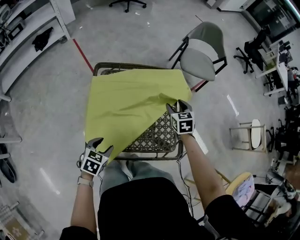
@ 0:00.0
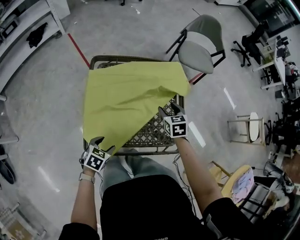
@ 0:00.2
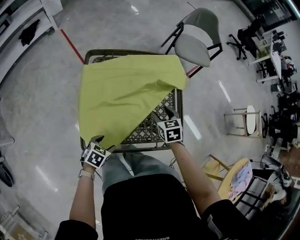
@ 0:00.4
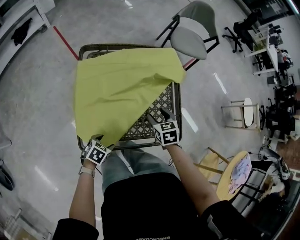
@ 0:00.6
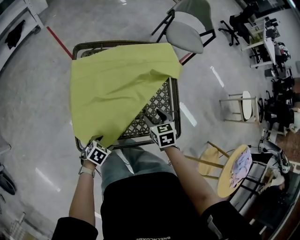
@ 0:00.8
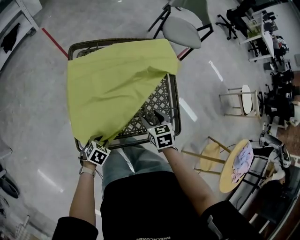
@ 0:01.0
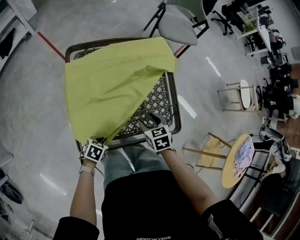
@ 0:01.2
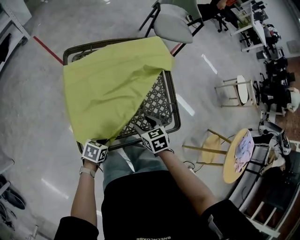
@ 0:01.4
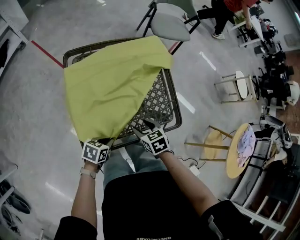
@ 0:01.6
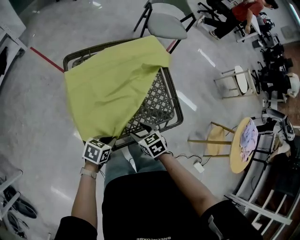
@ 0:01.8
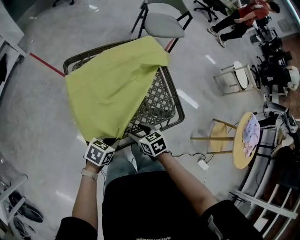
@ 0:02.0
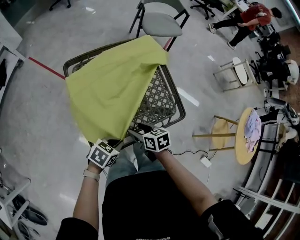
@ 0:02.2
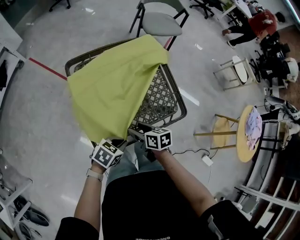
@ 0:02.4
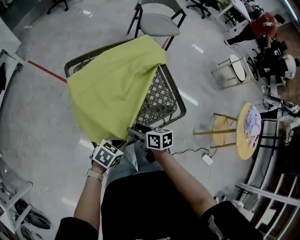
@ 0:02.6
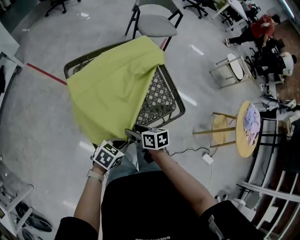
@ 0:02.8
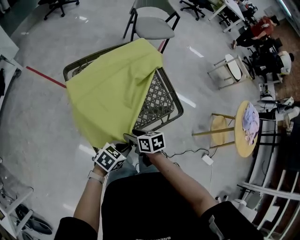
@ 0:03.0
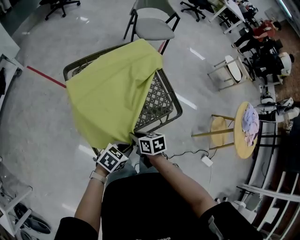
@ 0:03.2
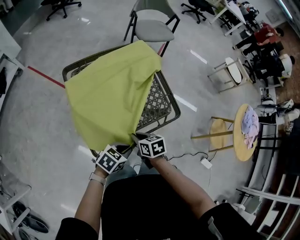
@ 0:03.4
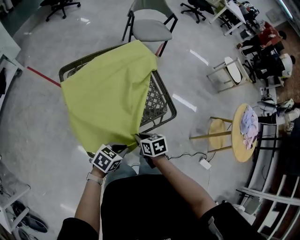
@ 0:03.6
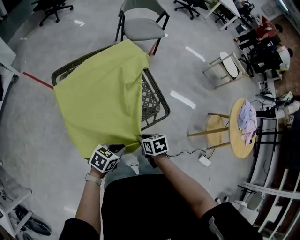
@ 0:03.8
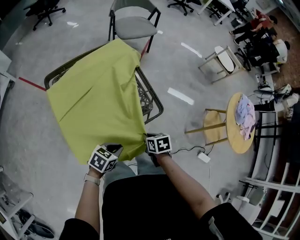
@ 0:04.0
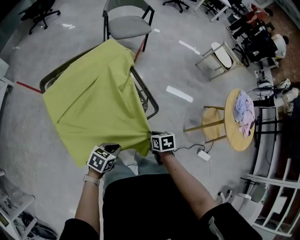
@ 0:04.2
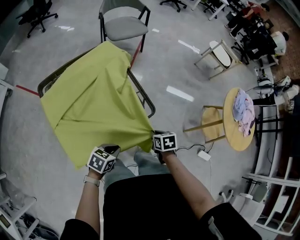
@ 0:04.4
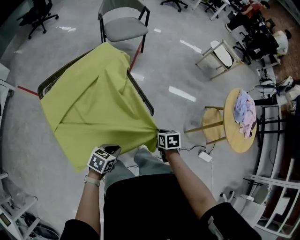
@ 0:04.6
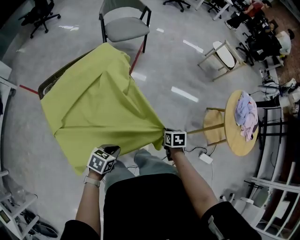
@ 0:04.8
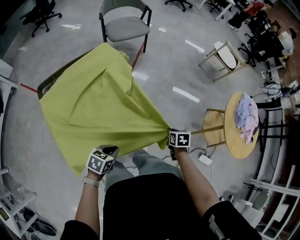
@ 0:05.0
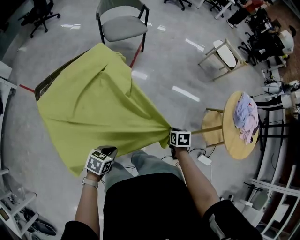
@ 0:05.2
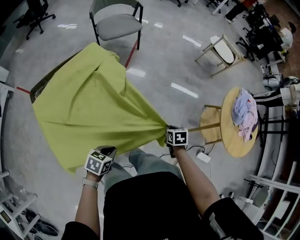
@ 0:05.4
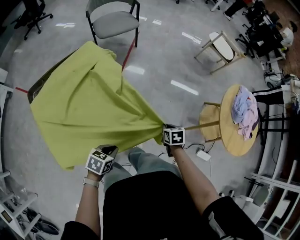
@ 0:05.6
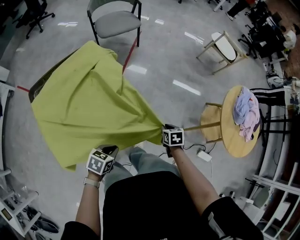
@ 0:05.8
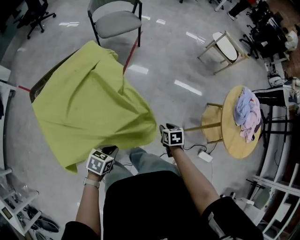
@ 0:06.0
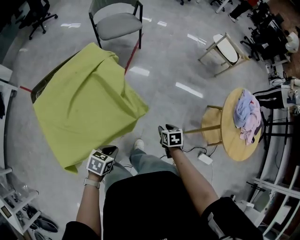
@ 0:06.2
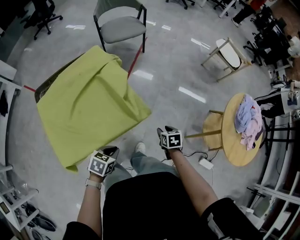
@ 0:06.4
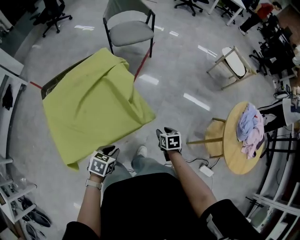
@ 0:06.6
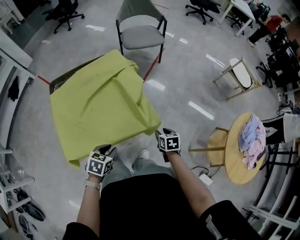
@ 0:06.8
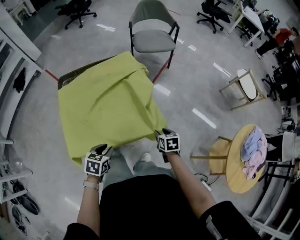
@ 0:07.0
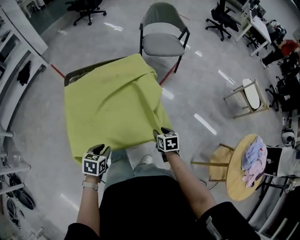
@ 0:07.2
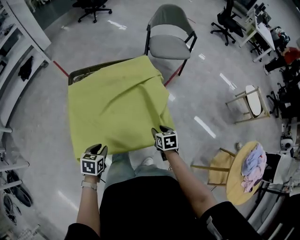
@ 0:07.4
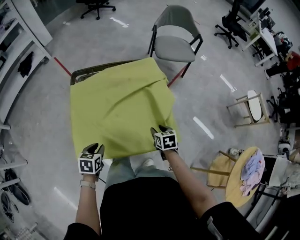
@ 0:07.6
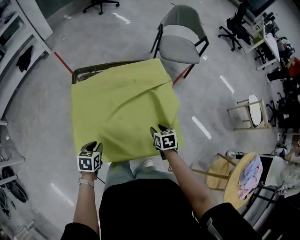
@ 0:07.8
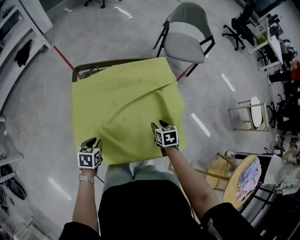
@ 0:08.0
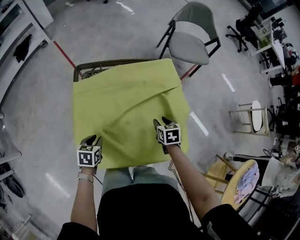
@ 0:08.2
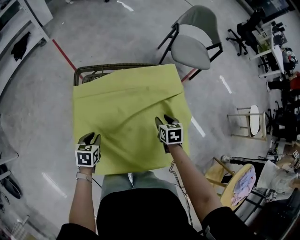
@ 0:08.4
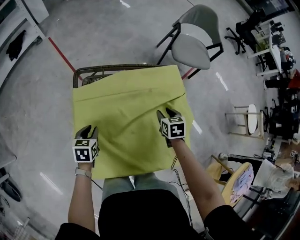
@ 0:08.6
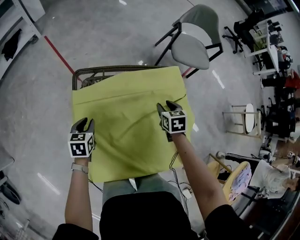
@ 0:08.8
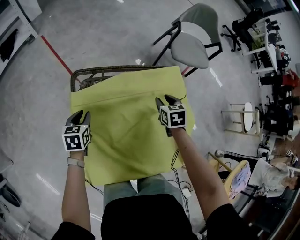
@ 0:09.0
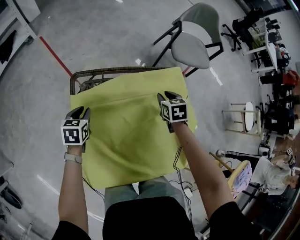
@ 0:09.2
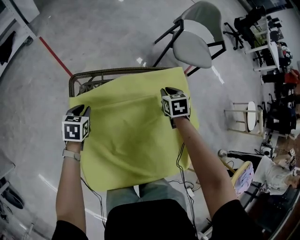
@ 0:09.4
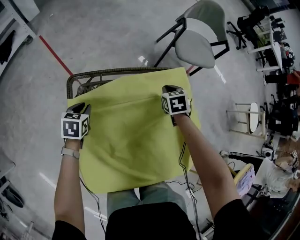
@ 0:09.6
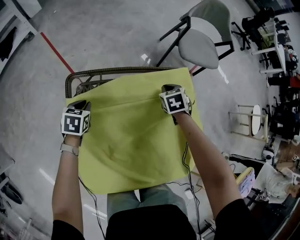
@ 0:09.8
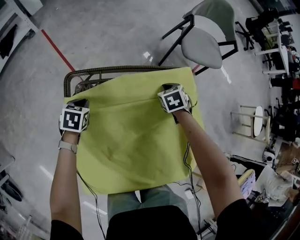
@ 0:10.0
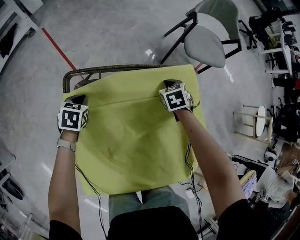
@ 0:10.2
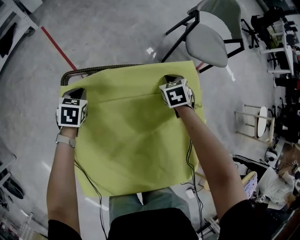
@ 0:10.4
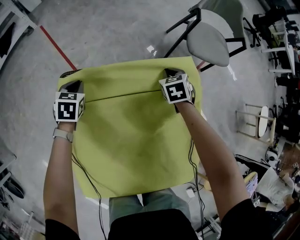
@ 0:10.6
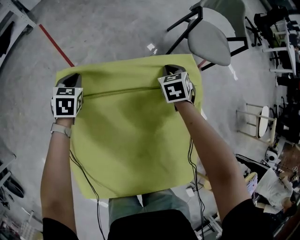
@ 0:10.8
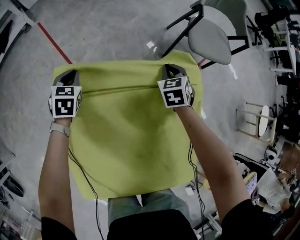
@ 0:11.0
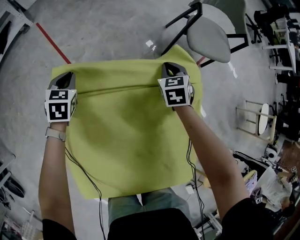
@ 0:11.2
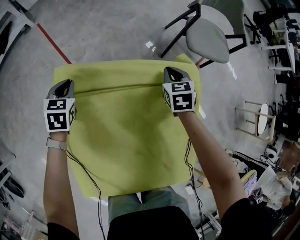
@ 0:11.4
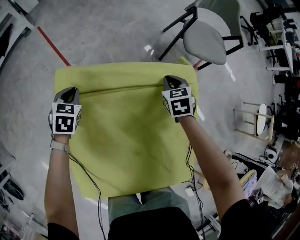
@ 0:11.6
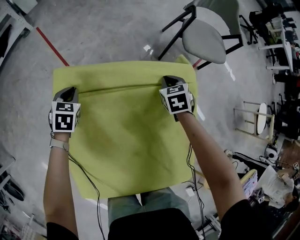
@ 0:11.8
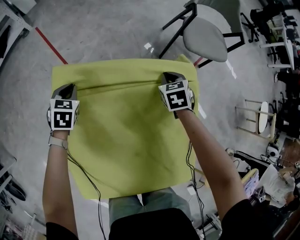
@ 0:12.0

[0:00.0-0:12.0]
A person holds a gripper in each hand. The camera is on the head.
0:00.0 to 0:01.6: The right gripper moves backward, approximately 25 cm, and swivels some 20 degrees. The left gripper moves downward, some 10 cm, turns by approximately 30 degrees, and closes.
0:01.6 to 0:03.0: The right gripper shifts by about 10 cm, and turns by approximately 30 degrees, while the left gripper is displaced upward by approximately 10 cm, and rotates some 30 degrees.
0:03.0 to 0:04.4: The right gripper shifts by roughly 30 cm, turns by roughly 20 degrees, and closes up; the left gripper ends up approximately 10 cm from where it was.
0:04.4 to 0:06.0: The right gripper moves to the right and forward, about 20 cm, and opens. The left gripper heads to the right and forward, covering roughly 10 cm.
0:06.0 to 0:07.6: The left gripper moves some 25 cm, changes its angle by some 50 degrees, and opens its fingers; the right gripper changes place by some 30 cm, and changes its angle by roughly 30 degrees.
0:07.6 to 0:09.0: Both grippers travel together forward and to the left, about 30 cm.
0:09.0 to 0:10.4: The two grippers go some 15 cm forward and downward. The right gripper closes up.

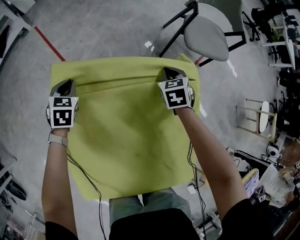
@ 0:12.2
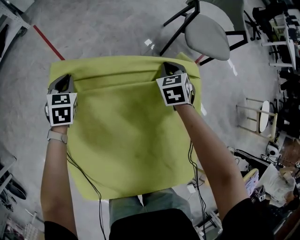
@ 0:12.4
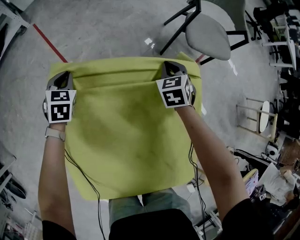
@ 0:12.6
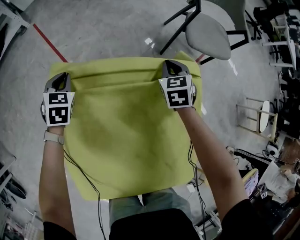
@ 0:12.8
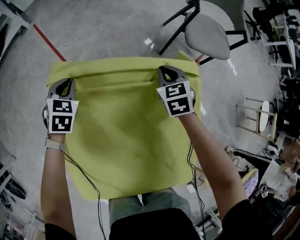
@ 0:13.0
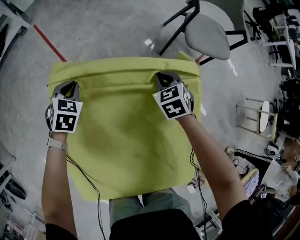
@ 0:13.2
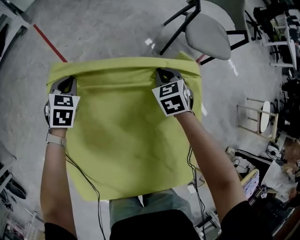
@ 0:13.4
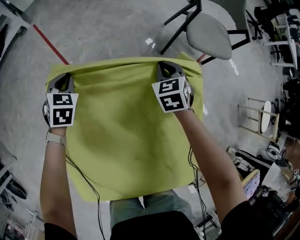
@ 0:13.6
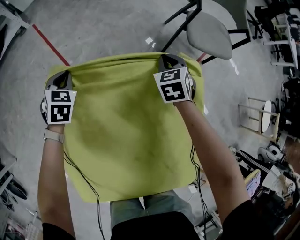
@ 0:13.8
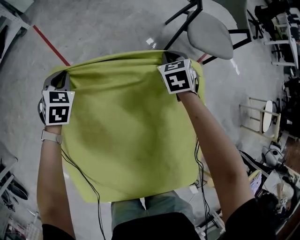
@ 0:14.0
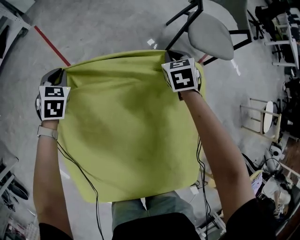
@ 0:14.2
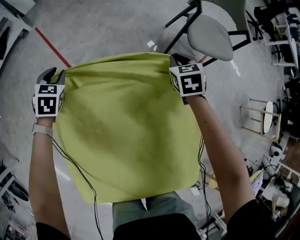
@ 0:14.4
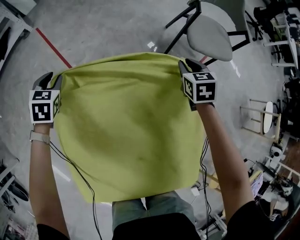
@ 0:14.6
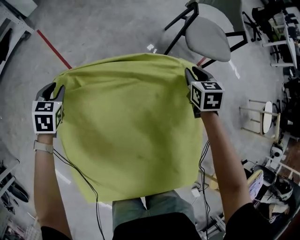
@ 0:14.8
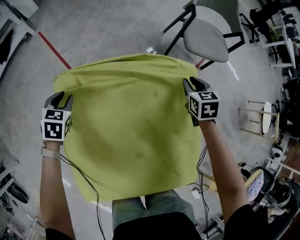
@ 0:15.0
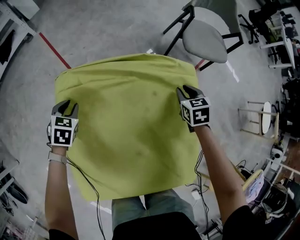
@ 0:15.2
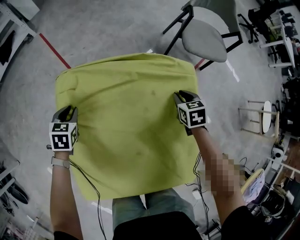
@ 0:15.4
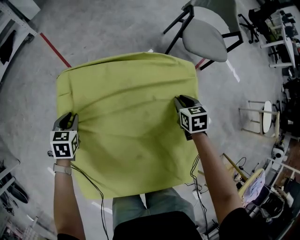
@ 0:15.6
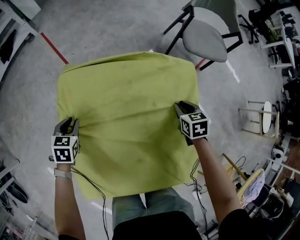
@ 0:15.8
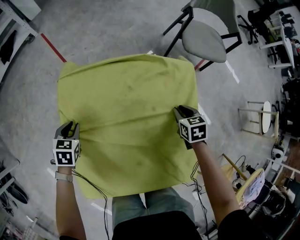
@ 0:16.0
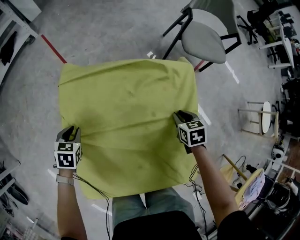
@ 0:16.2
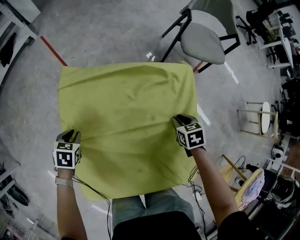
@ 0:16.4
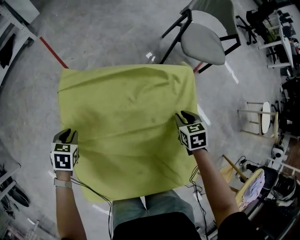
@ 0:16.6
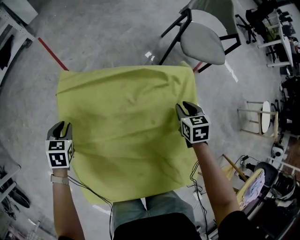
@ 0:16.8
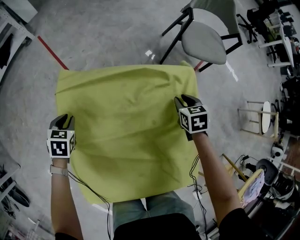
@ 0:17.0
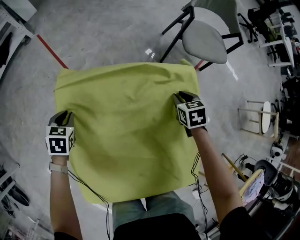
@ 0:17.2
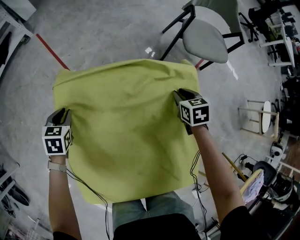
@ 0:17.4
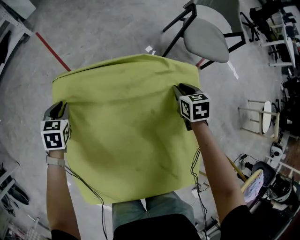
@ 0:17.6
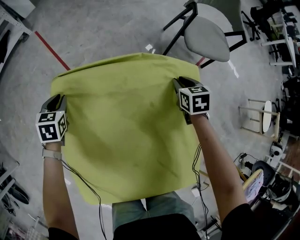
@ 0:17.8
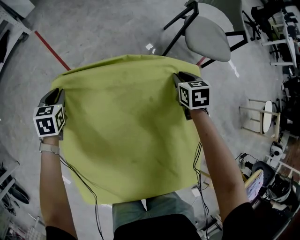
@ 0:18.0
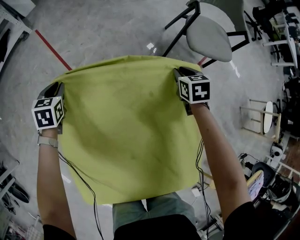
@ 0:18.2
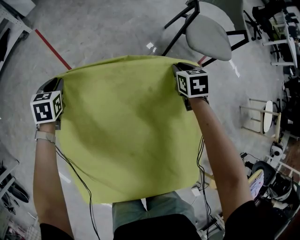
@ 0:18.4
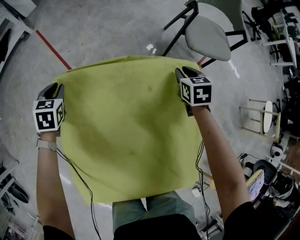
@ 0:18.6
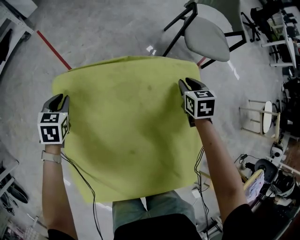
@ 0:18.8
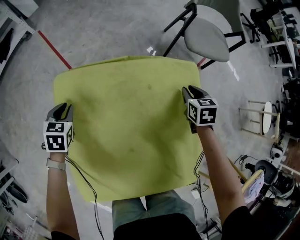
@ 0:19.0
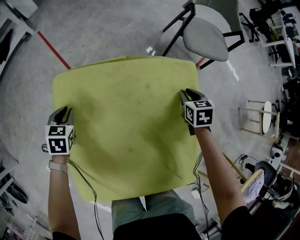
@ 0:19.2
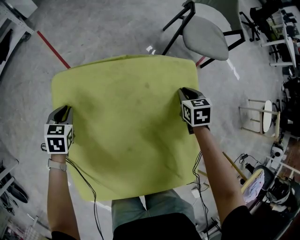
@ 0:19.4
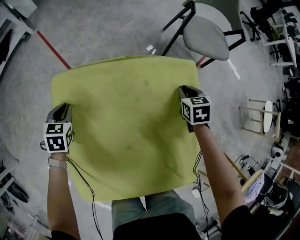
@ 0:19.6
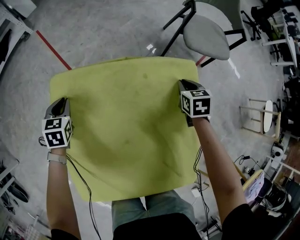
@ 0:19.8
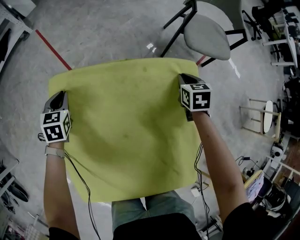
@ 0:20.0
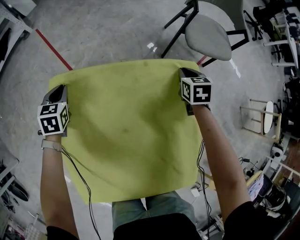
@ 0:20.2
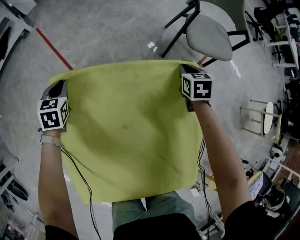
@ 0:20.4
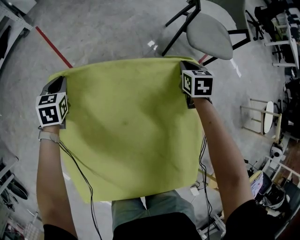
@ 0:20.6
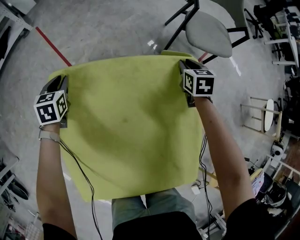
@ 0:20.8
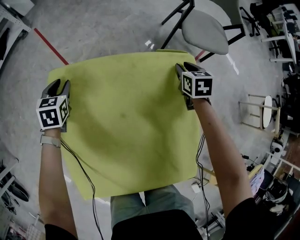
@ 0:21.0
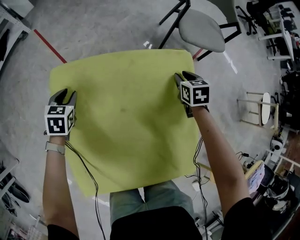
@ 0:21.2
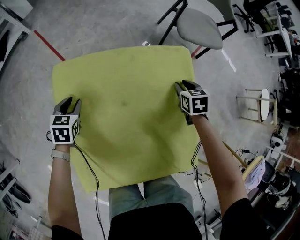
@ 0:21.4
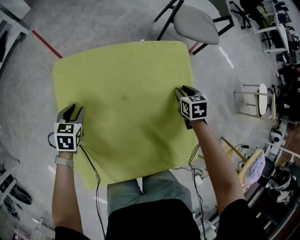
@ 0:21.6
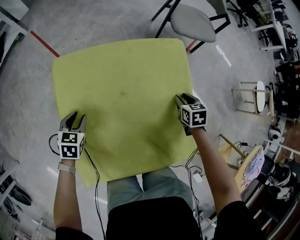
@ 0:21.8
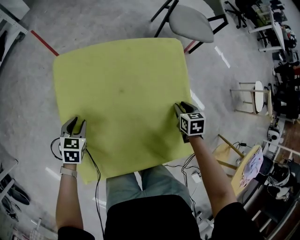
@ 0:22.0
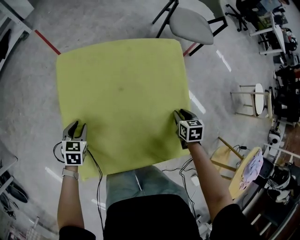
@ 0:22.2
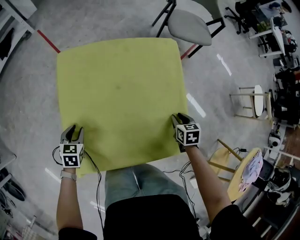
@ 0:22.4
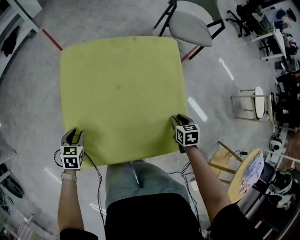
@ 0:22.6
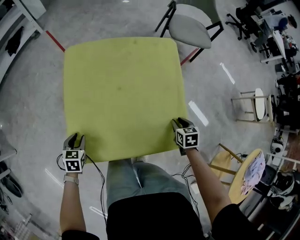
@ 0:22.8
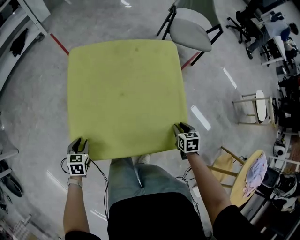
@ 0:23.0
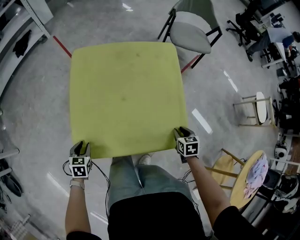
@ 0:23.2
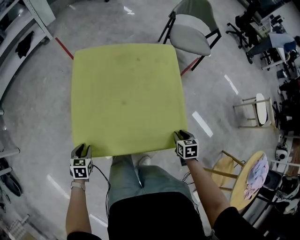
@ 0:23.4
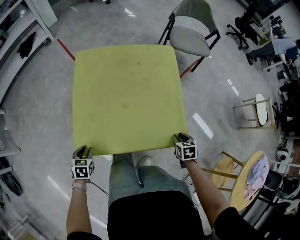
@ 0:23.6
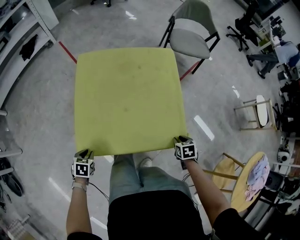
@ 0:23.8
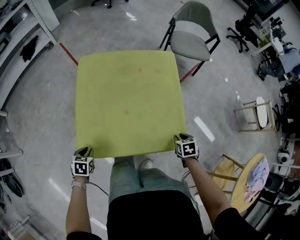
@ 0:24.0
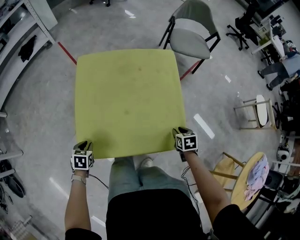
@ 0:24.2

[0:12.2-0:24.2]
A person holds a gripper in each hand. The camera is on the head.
0:12.2 to 0:13.8: The grippers make only small movements.
0:13.8 to 0:15.2: The right gripper shifts approximately 15 cm backward and to the right, while the left gripper shifts approximately 10 cm backward, and opens up.
0:15.2 to 0:16.6: The grippers both shift backward by approximately 10 cm.
0:16.6 to 0:18.2: Both grippers travel together forward, about 20 cm.
0:18.2 to 0:19.8: Both grippers move backward, some 5 cm.
0:19.8 to 0:21.2: The right gripper moves approximately 10 cm forward and comes back; the left gripper moves about 10 cm forward and comes back, and opens up.
0:21.2 to 0:22.6: The grippers both shift backward by roughly 30 cm.
0:22.6 to 0:24.2: The two grippers go approximately 10 cm backward.
